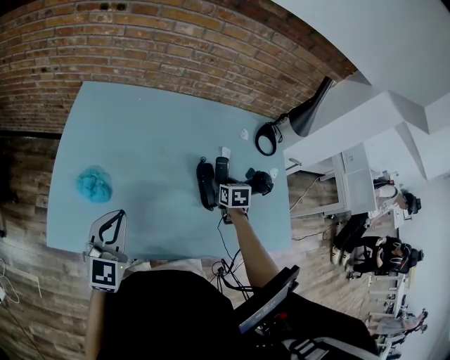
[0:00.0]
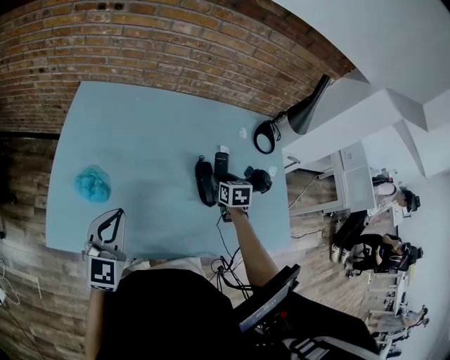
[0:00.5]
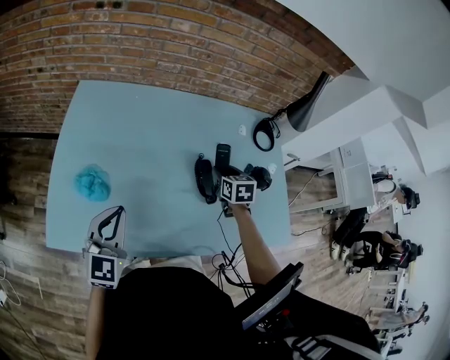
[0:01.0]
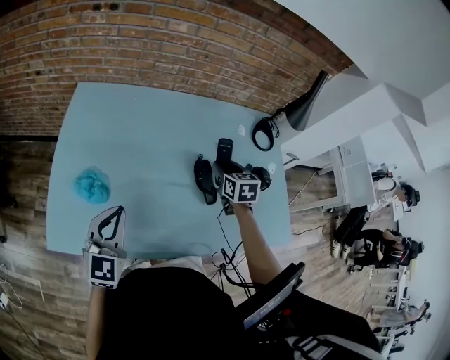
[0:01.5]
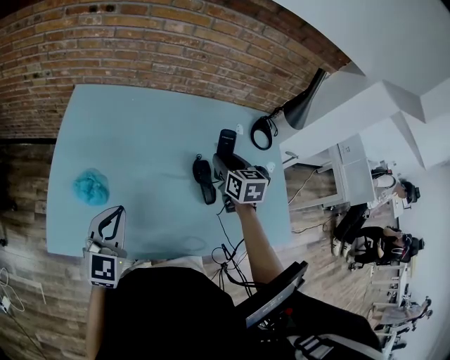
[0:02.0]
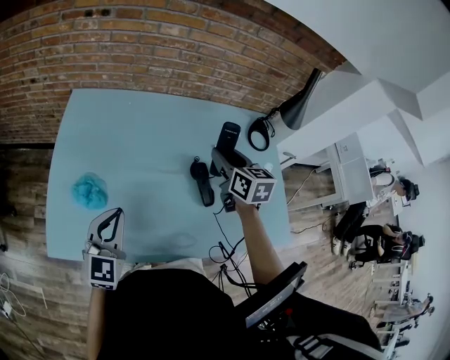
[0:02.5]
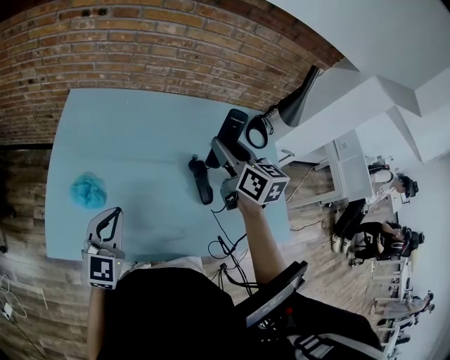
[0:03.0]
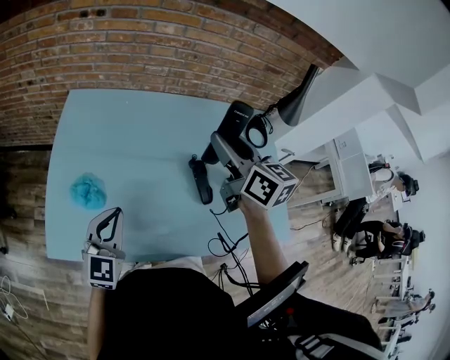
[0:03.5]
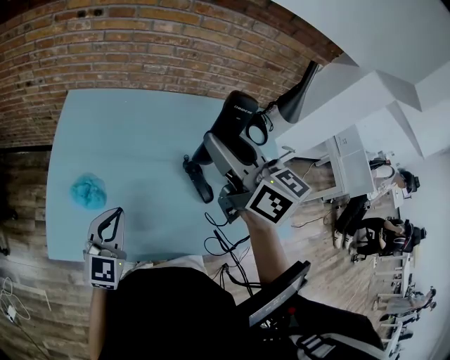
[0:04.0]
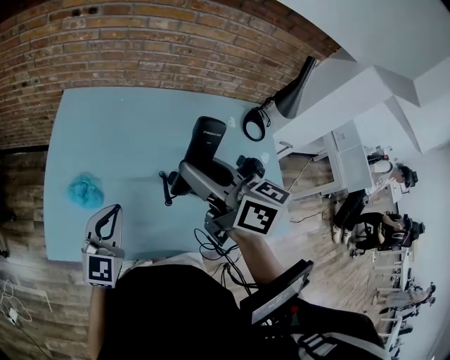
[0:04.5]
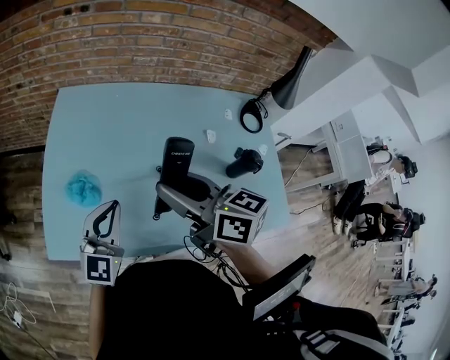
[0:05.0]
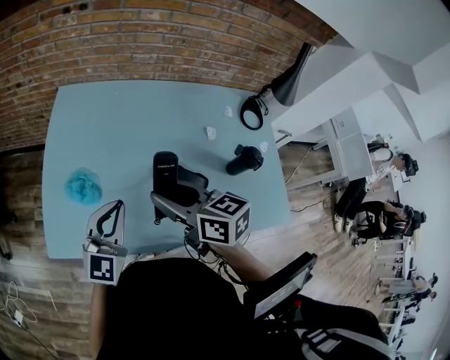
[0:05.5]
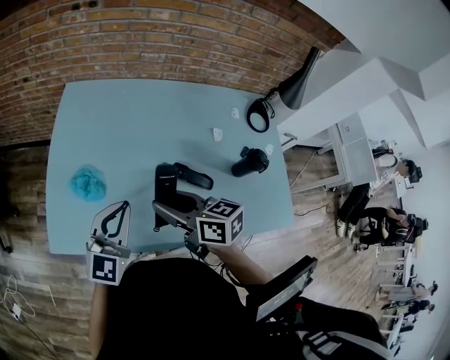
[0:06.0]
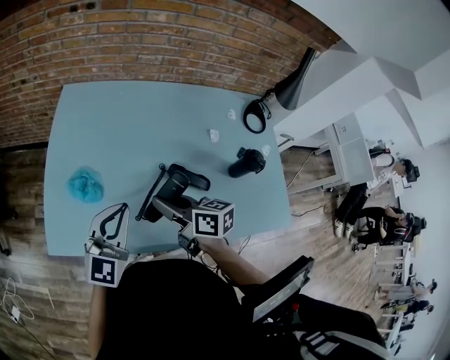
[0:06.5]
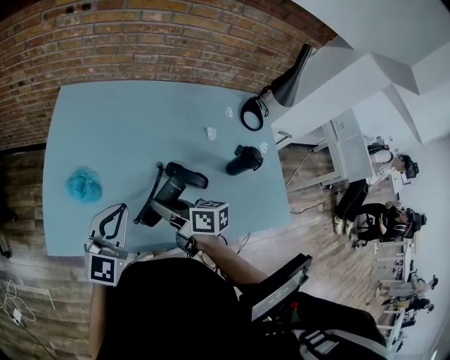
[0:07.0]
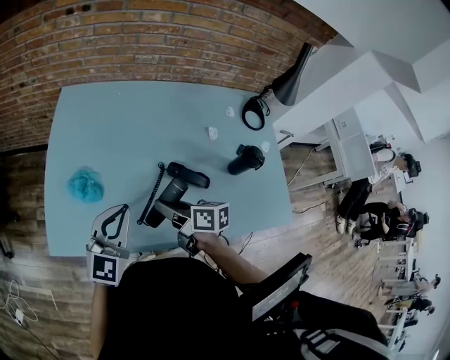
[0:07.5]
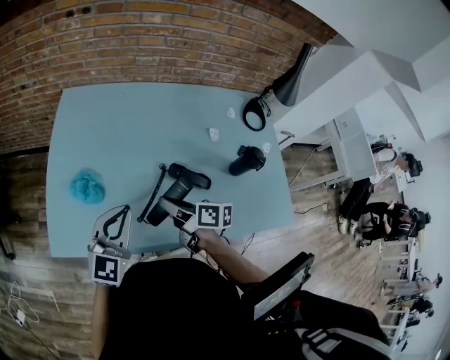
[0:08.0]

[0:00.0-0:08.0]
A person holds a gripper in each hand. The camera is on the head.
0:00.0 to 0:02.0: The right gripper travels upward by approximately 15 cm, and rotates roughly 20 degrees.
0:02.0 to 0:04.0: The right gripper heads upward and to the left, covering some 25 cm, and changes its angle by approximately 30 degrees.
0:04.0 to 0:06.0: The right gripper travels downward, to the left and backward by some 25 cm, and swivels roughly 30 degrees.
0:06.0 to 0:08.0: The right gripper goes roughly 10 cm downward, and turns by roughly 30 degrees.

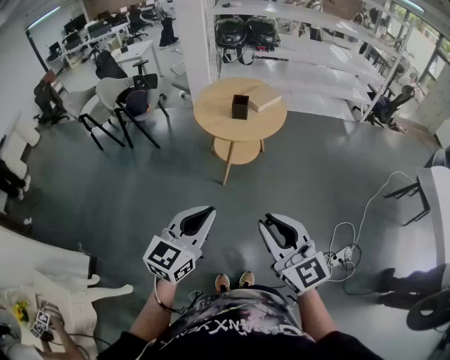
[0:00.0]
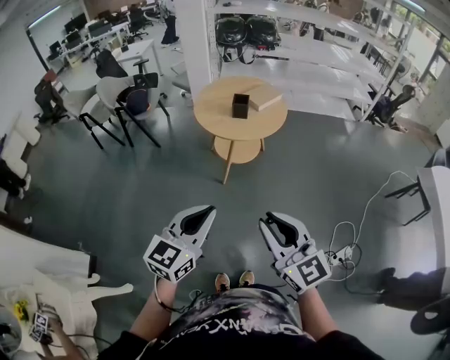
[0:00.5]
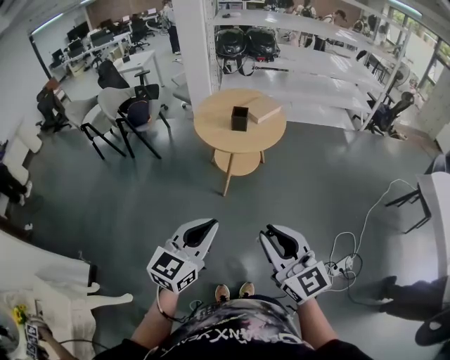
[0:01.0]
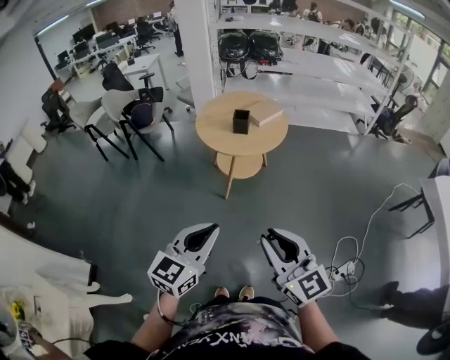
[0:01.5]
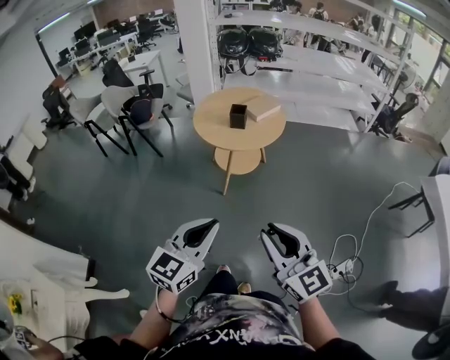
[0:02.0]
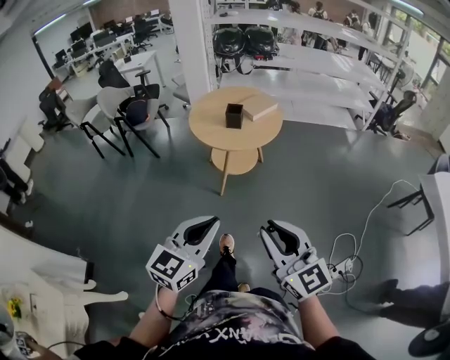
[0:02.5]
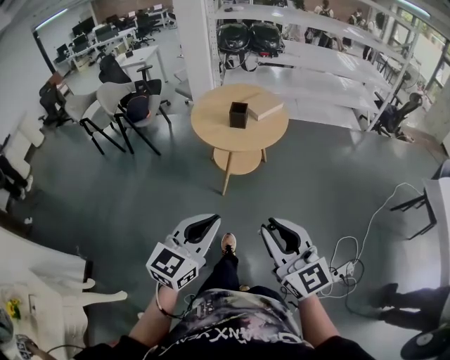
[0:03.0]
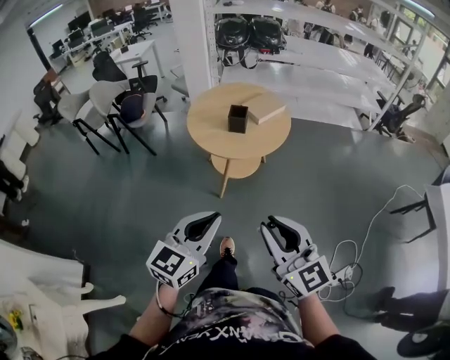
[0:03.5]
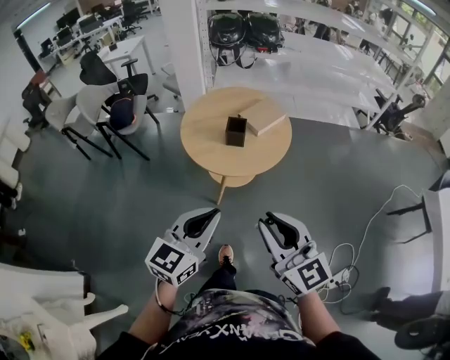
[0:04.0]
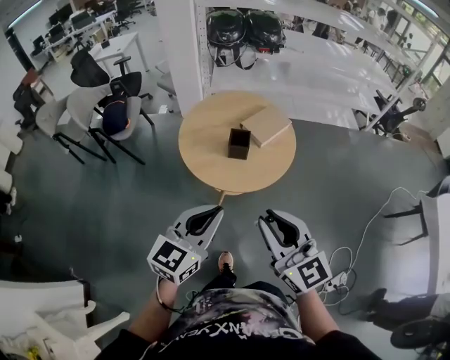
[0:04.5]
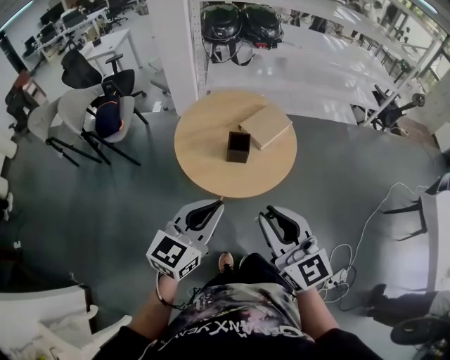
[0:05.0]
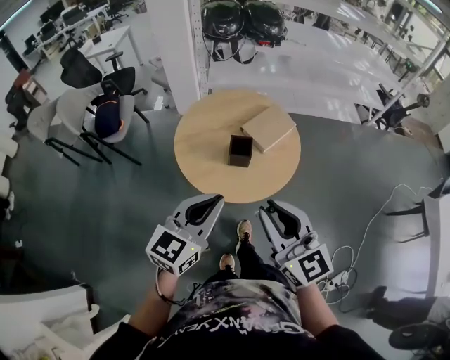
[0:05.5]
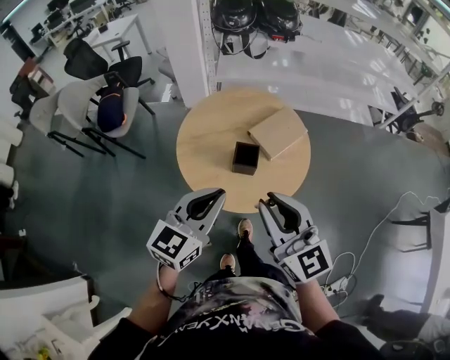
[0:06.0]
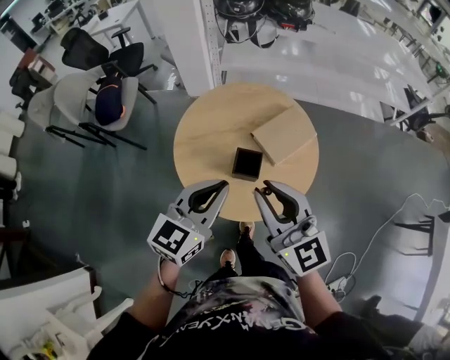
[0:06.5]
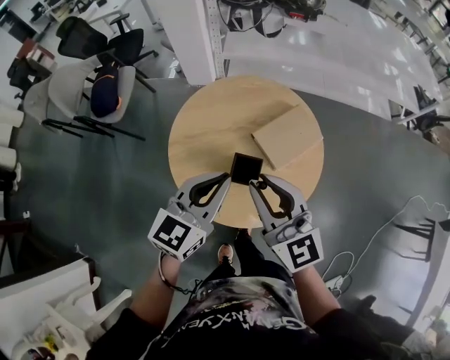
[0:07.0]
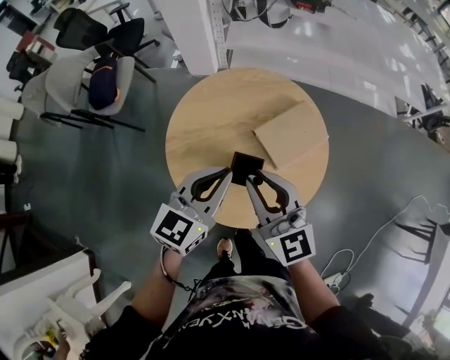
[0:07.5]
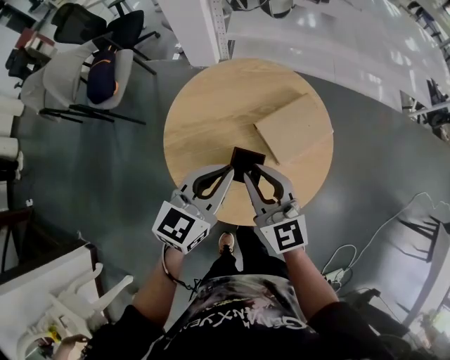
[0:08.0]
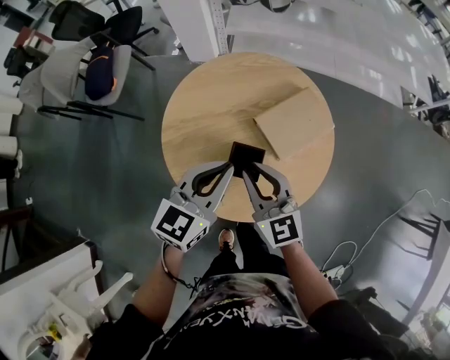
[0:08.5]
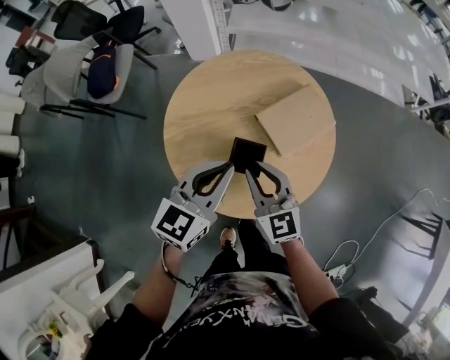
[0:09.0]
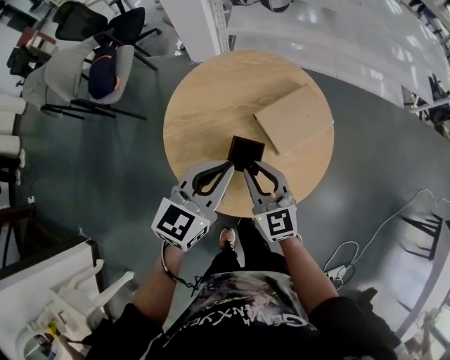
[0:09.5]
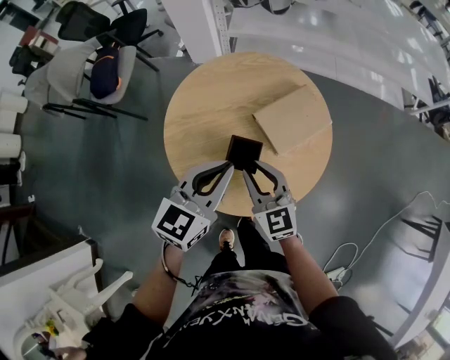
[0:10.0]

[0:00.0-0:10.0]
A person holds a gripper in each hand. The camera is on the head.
0:00.0 to 0:02.0: Both grippers move to the right, roughly 5 cm.
0:02.0 to 0:04.0: The grippers both shift forward by about 30 cm.
0:04.0 to 0:06.0: The two grippers go about 30 cm forward.
0:06.0 to 0:08.0: Both grippers travel together forward and downward, approximately 25 cm.
0:08.0 to 0:10.0: The right gripper travels downward by approximately 10 cm.

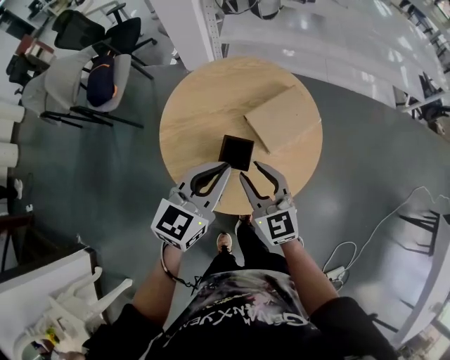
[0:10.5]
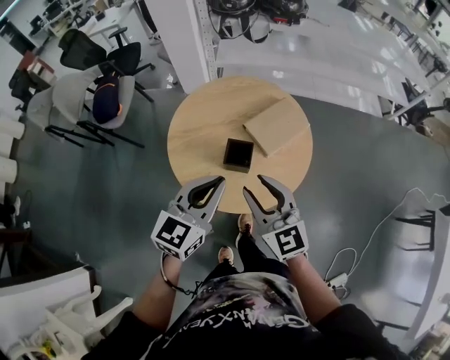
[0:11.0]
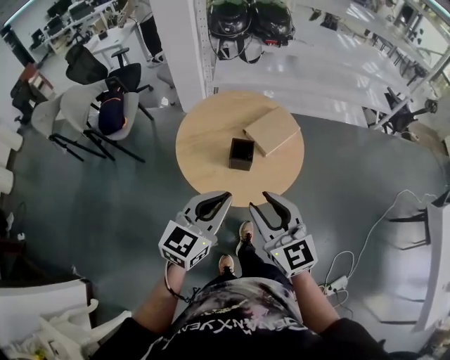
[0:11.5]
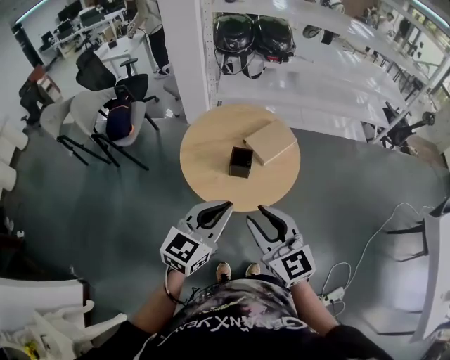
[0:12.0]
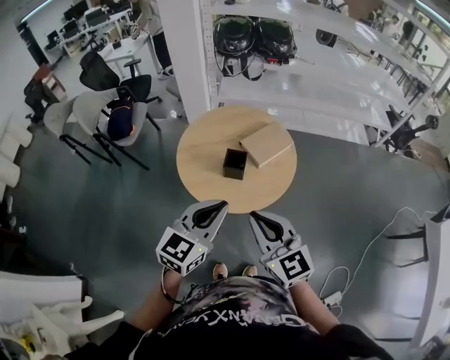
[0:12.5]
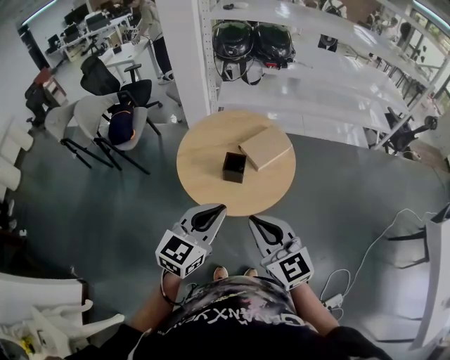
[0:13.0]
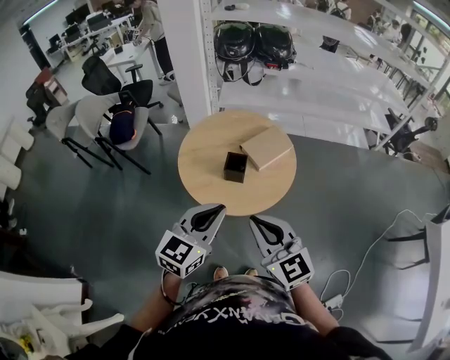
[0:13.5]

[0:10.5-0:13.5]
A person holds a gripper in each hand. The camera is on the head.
0:10.5 to 0:12.0: The grippers both shift backward and upward by some 30 cm.
0:12.0 to 0:13.5: The right gripper closes up.

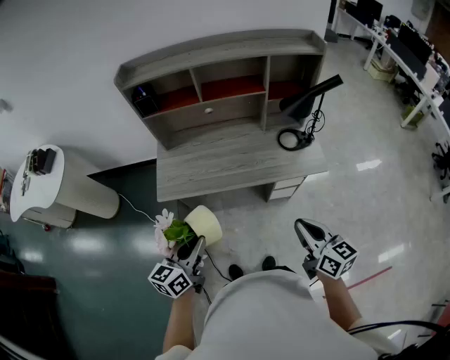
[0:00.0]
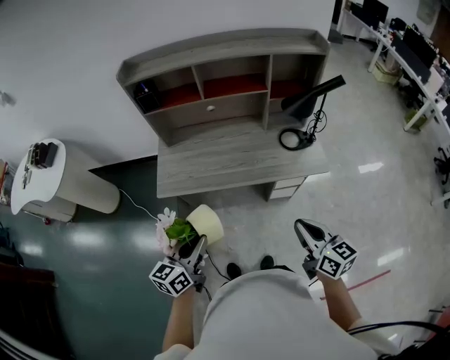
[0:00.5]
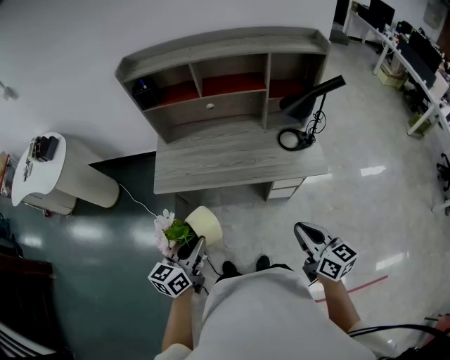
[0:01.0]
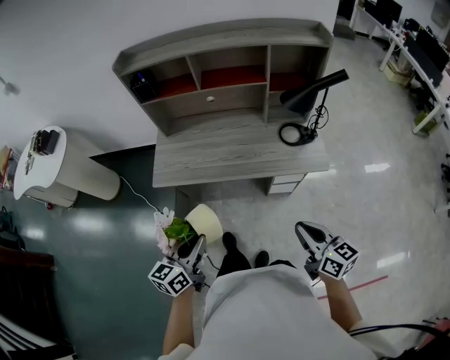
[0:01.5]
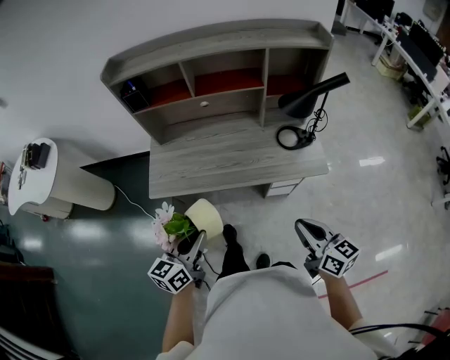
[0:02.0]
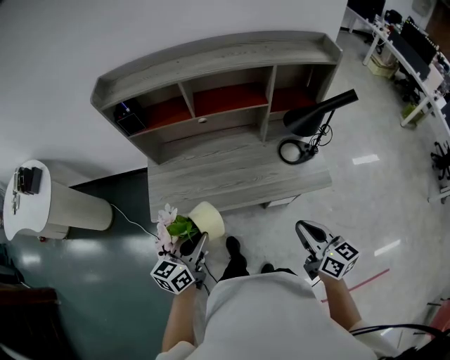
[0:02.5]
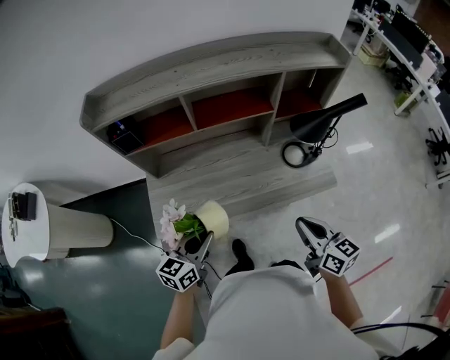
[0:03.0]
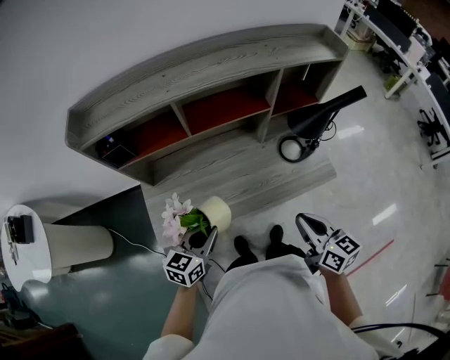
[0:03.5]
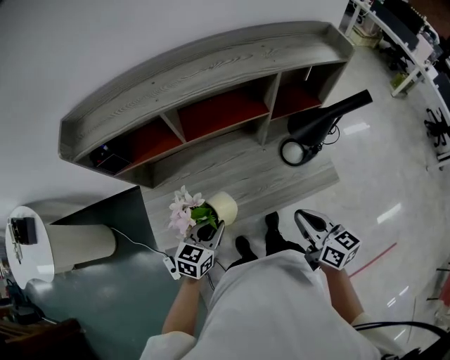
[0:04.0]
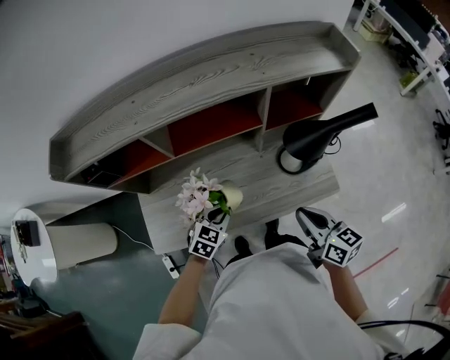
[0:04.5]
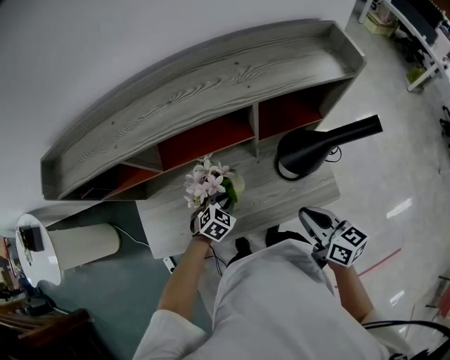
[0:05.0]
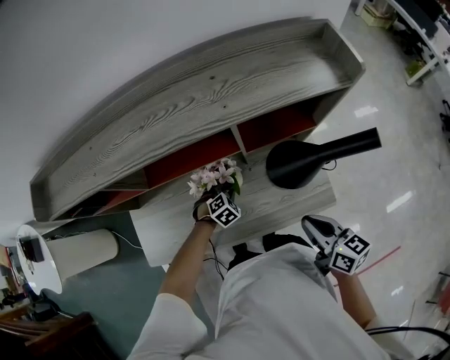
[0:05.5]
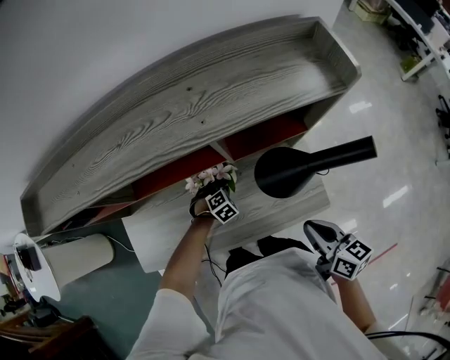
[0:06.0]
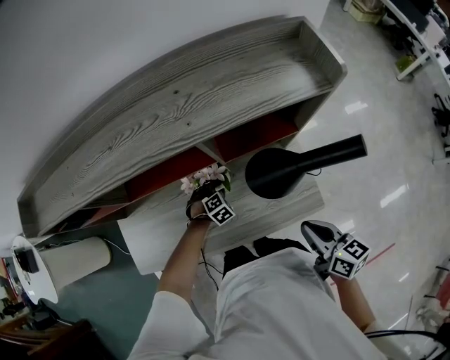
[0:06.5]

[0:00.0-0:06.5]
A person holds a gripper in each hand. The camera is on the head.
0:00.0 to 0:02.0: The left gripper moves to the right, some 5 cm; the right gripper shifts by roughly 5 cm.
0:02.0 to 0:04.5: Both grippers move forward, some 30 cm. The left gripper changes its angle by some 50 degrees.
0:04.5 to 0:06.5: The left gripper shifts about 30 cm downward, forward and to the right, and changes its angle by roughly 40 degrees. Meanwhile the right gripper is displaced to the right and forward by roughly 15 cm.
